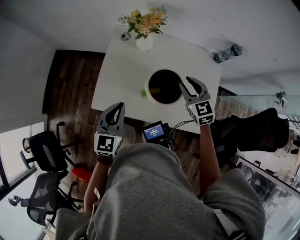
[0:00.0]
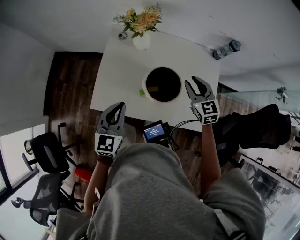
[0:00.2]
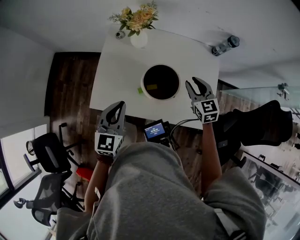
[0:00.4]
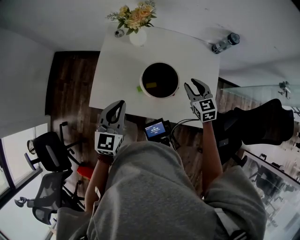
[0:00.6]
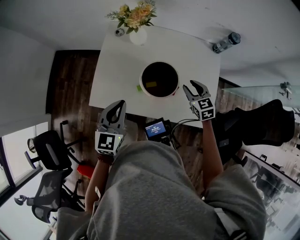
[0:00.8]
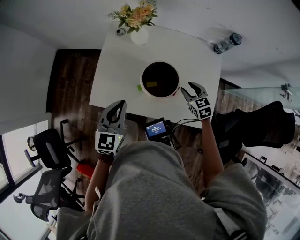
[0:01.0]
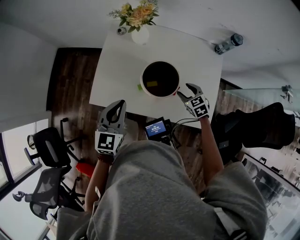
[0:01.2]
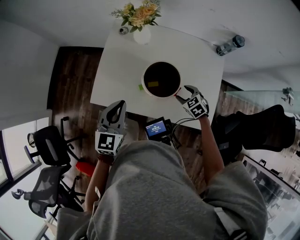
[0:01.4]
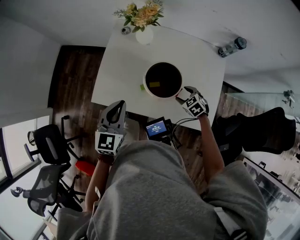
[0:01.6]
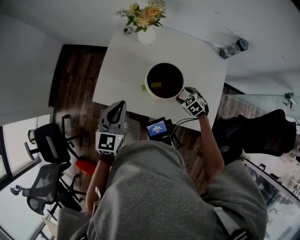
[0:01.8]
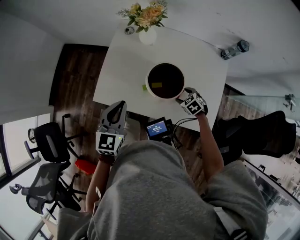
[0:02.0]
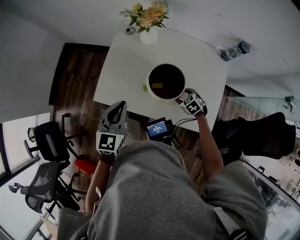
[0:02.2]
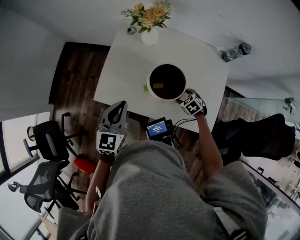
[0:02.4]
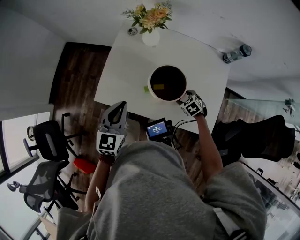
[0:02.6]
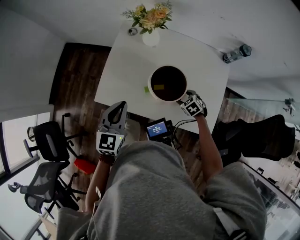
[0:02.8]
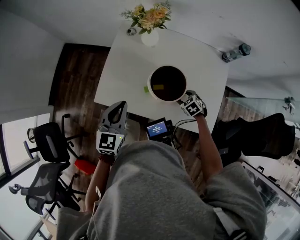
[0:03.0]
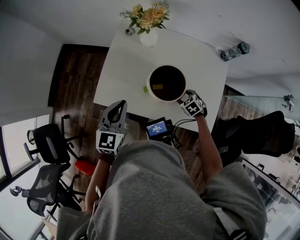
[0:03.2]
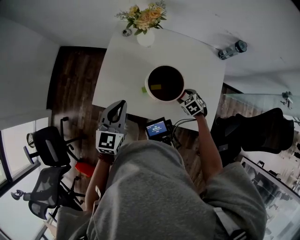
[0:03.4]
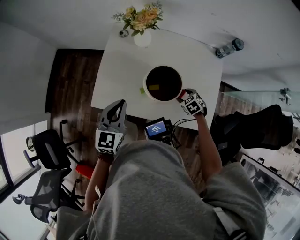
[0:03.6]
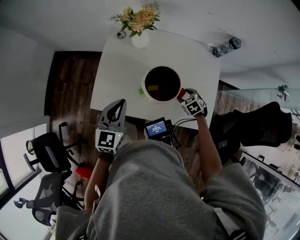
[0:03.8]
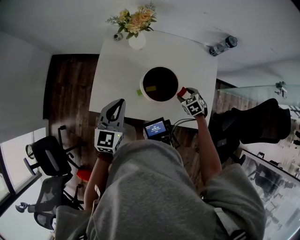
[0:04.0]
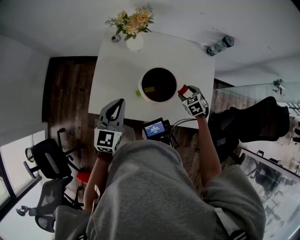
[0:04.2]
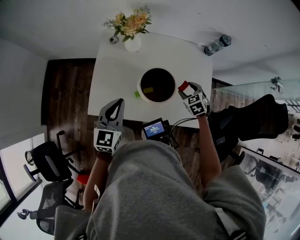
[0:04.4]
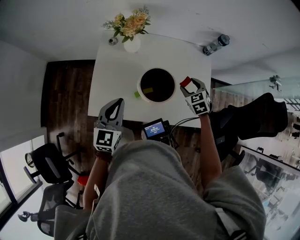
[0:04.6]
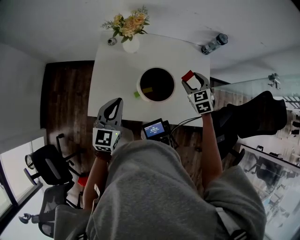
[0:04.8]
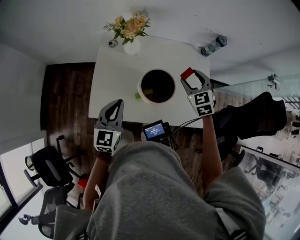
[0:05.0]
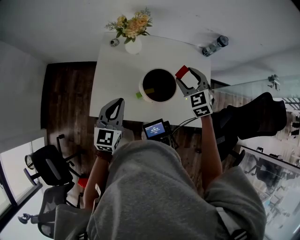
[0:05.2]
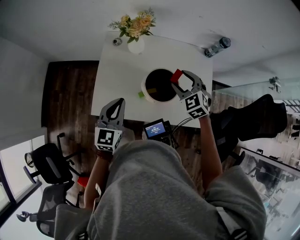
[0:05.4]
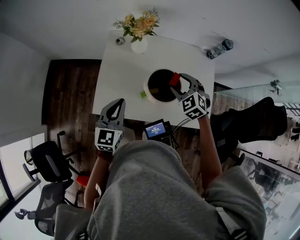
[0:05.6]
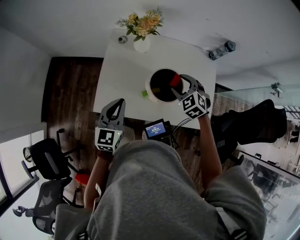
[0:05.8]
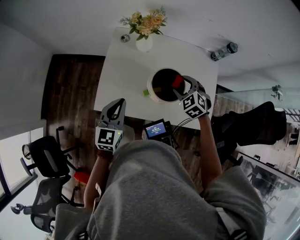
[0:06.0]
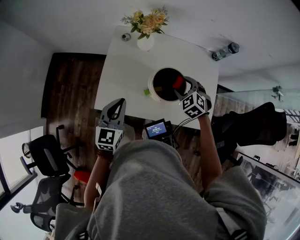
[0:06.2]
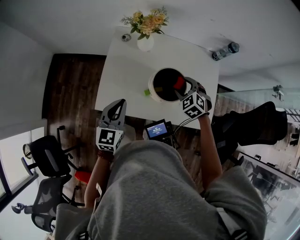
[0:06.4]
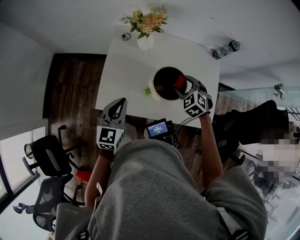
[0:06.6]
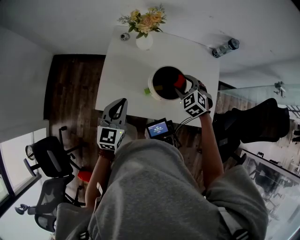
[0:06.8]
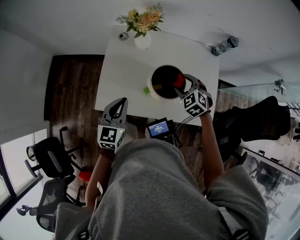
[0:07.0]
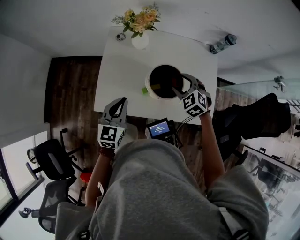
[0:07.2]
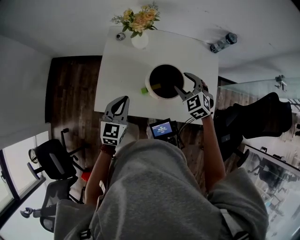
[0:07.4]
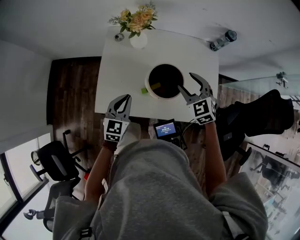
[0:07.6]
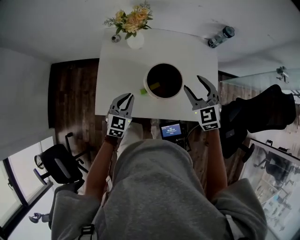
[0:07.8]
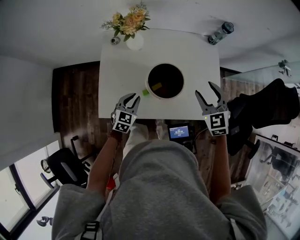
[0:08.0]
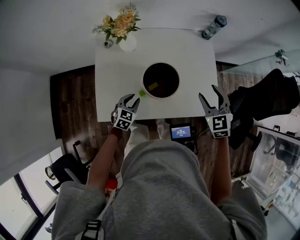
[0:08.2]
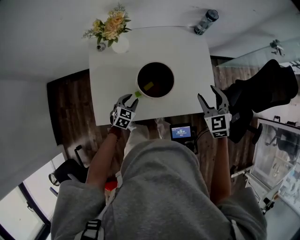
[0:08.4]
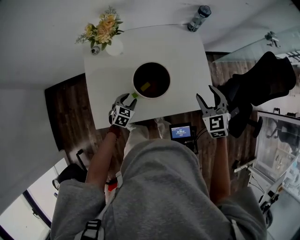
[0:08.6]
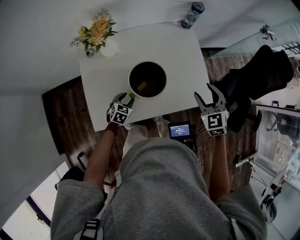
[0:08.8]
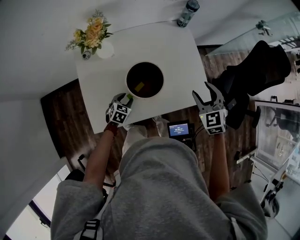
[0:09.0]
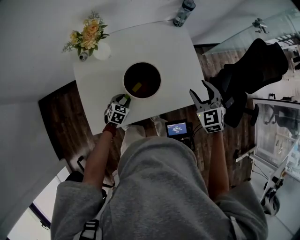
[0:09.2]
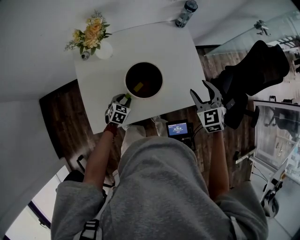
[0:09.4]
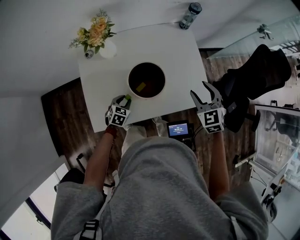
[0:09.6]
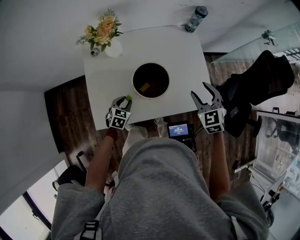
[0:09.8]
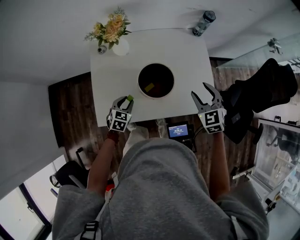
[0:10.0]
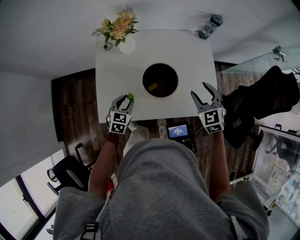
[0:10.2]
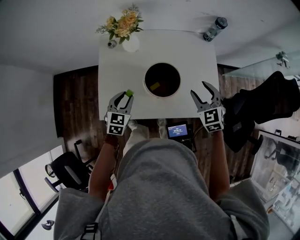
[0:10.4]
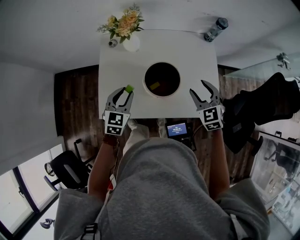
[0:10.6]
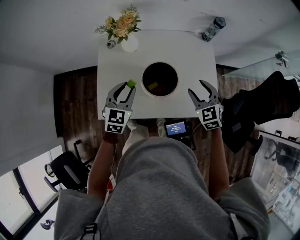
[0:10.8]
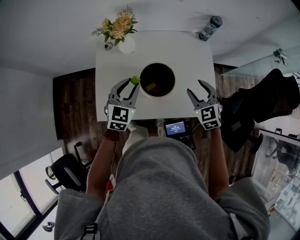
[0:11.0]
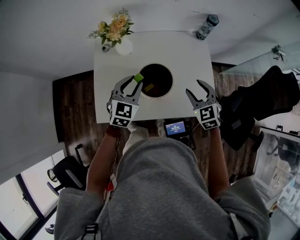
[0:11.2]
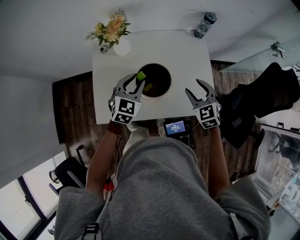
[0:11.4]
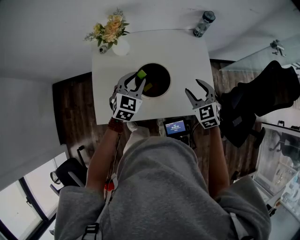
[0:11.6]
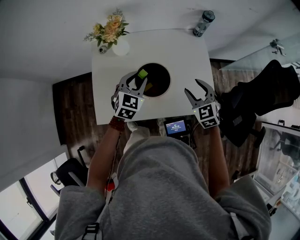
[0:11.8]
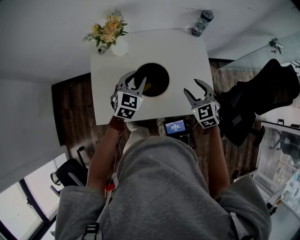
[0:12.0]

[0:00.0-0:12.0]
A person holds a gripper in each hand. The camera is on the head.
0:00.0 to 0:01.6: The right gripper moves downward, approximately 20 cm, points its fingers about 30 degrees further downward, and opens its fingers.
0:01.6 to 0:03.0: The grippers move only a little.
0:03.0 to 0:04.4: The right gripper heads upward, covering roughly 10 cm, and swivels about 20 degrees.
0:04.4 to 0:06.0: The right gripper shifts approximately 15 cm to the left and upward, and turns by roughly 20 degrees.
0:06.0 to 0:07.6: The right gripper moves some 5 cm. The left gripper travels downward by some 5 cm.
0:07.6 to 0:09.0: The left gripper heads downward, covering approximately 20 cm, turns by approximately 40 degrees, and opens its fingers, while the right gripper moves roughly 15 cm, and swivels some 30 degrees.
0:09.0 to 0:10.4: The right gripper heads to the left, covering some 5 cm. The left gripper travels upward by about 15 cm, and turns by approximately 30 degrees.
0:10.4 to 0:12.0: The left gripper shifts roughly 15 cm to the right, forward and upward.

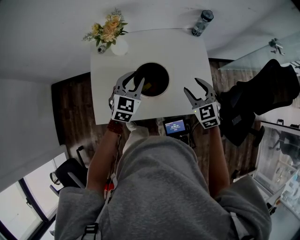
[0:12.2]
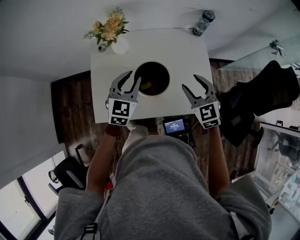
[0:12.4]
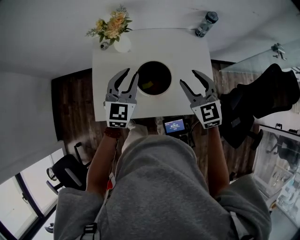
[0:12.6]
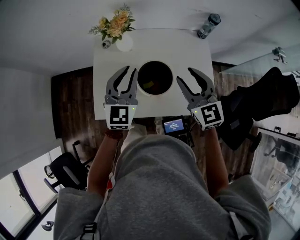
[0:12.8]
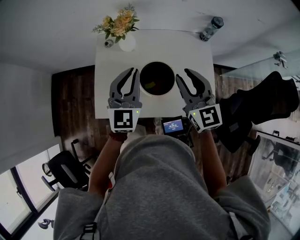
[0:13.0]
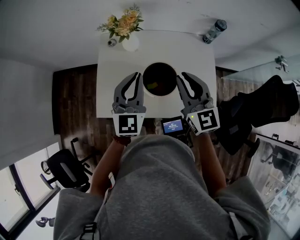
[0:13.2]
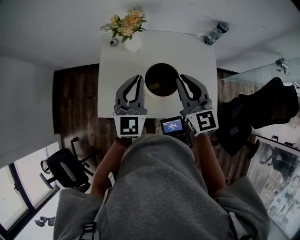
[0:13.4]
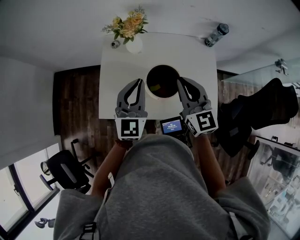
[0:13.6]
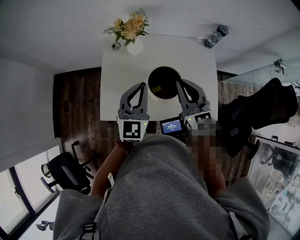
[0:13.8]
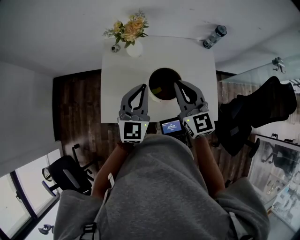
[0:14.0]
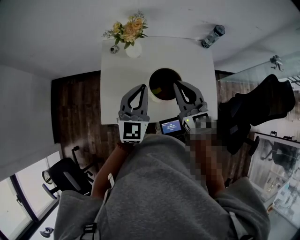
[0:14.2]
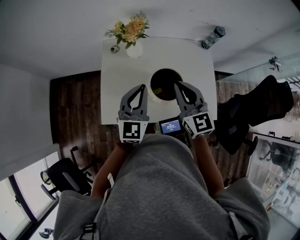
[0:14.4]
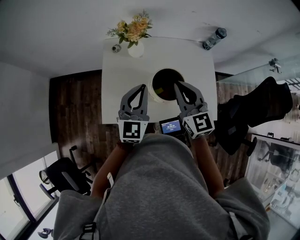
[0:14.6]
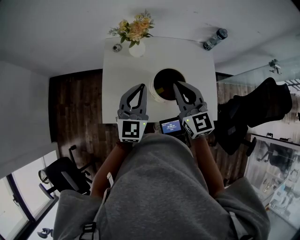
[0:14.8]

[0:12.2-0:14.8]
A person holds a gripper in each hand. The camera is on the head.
0:12.2 to 0:13.4: The two grippers go approximately 15 cm upward and to the left. The right gripper changes its angle by approximately 30 degrees, and closes up. Meanwhile the left gripper rotates about 30 degrees, and closes its fingers.
0:13.4 to 0:14.8: The left gripper shifts by about 5 cm, while the right gripper goes some 5 cm to the left.

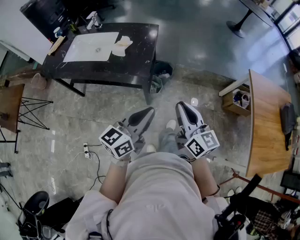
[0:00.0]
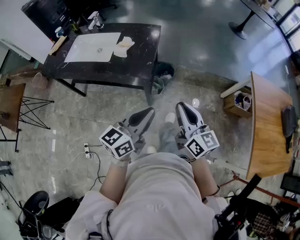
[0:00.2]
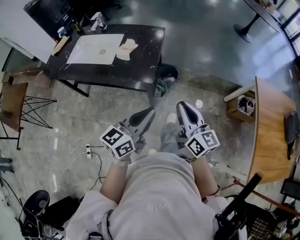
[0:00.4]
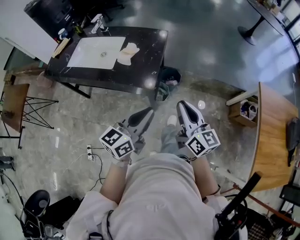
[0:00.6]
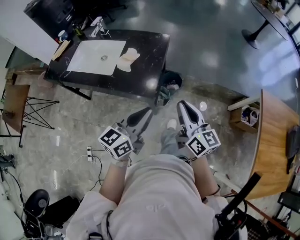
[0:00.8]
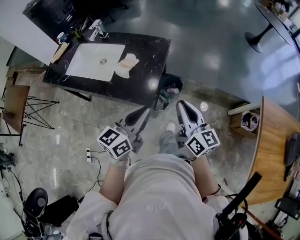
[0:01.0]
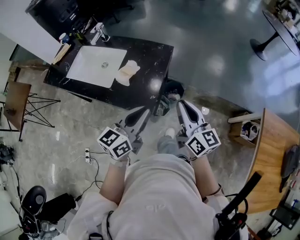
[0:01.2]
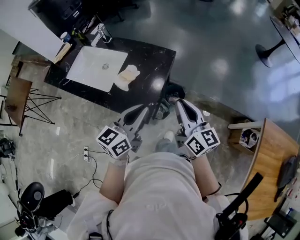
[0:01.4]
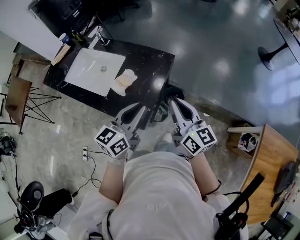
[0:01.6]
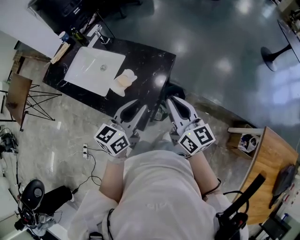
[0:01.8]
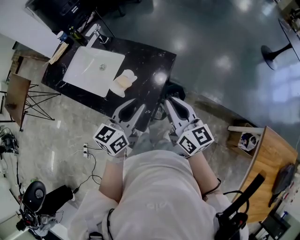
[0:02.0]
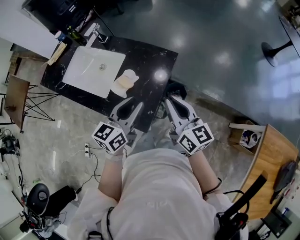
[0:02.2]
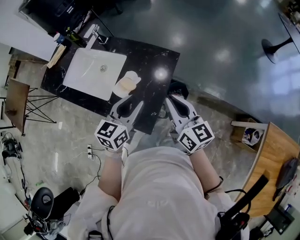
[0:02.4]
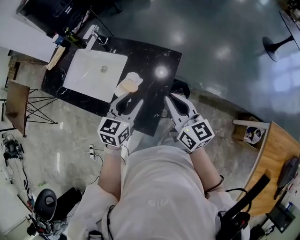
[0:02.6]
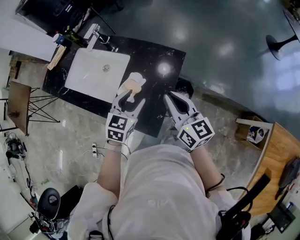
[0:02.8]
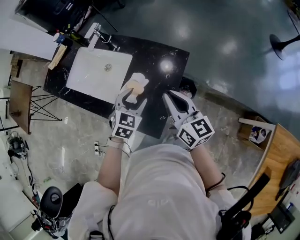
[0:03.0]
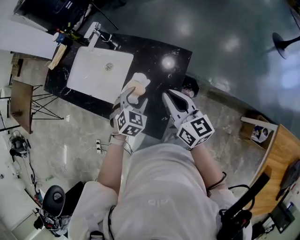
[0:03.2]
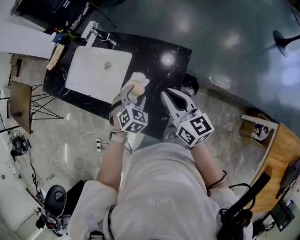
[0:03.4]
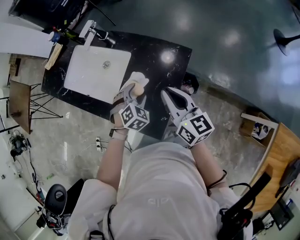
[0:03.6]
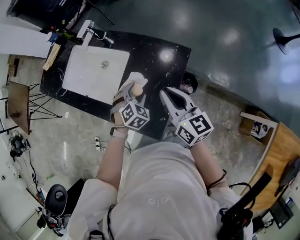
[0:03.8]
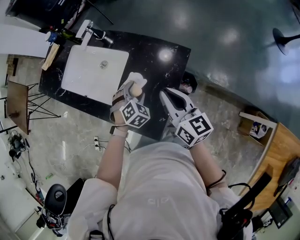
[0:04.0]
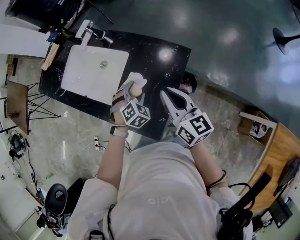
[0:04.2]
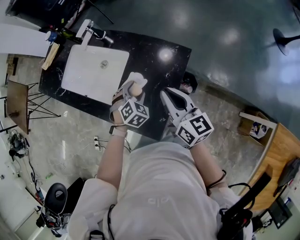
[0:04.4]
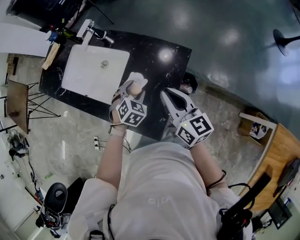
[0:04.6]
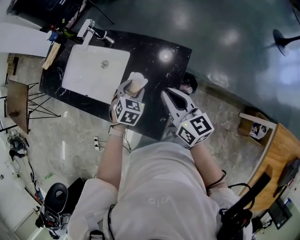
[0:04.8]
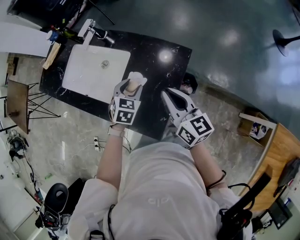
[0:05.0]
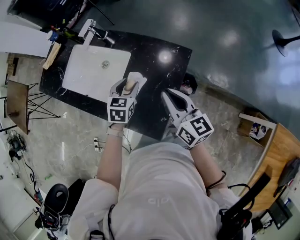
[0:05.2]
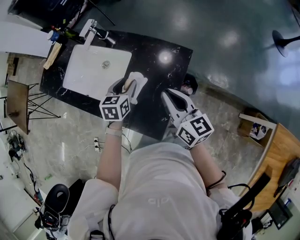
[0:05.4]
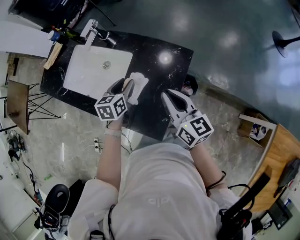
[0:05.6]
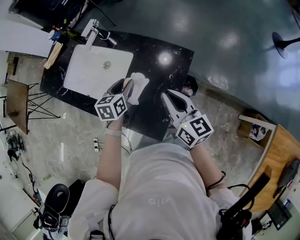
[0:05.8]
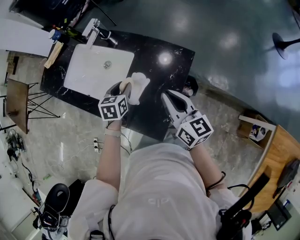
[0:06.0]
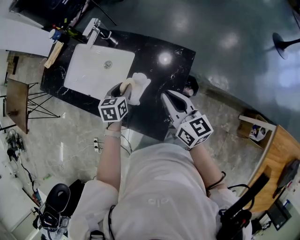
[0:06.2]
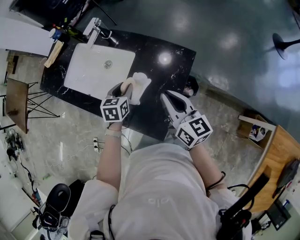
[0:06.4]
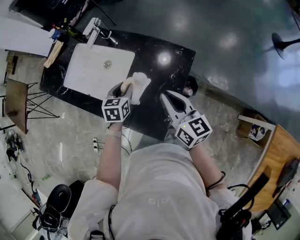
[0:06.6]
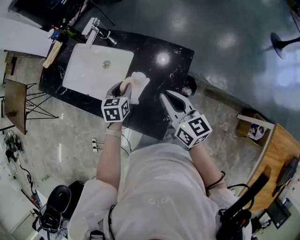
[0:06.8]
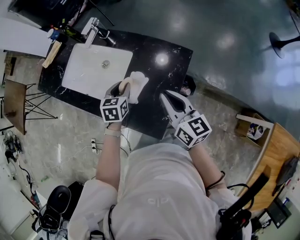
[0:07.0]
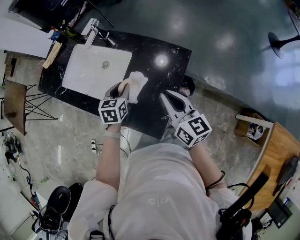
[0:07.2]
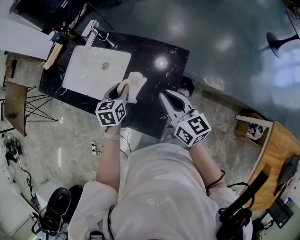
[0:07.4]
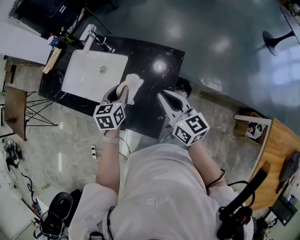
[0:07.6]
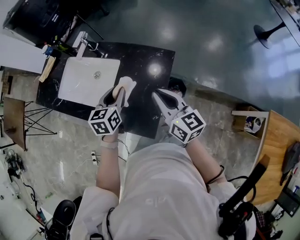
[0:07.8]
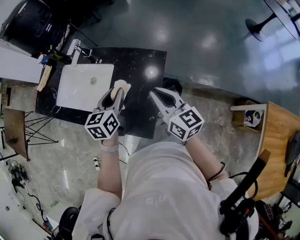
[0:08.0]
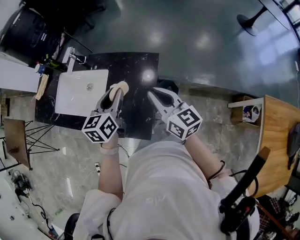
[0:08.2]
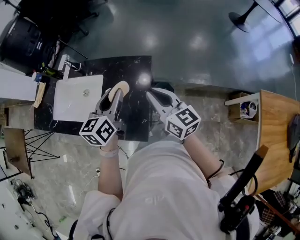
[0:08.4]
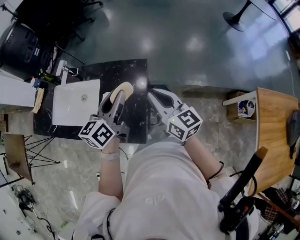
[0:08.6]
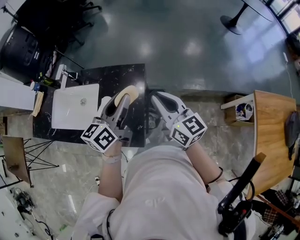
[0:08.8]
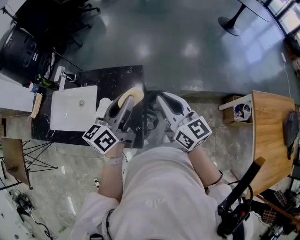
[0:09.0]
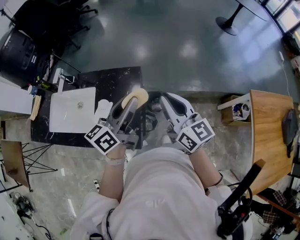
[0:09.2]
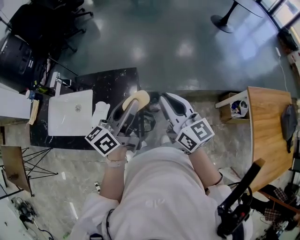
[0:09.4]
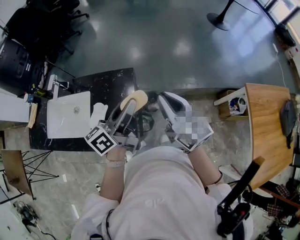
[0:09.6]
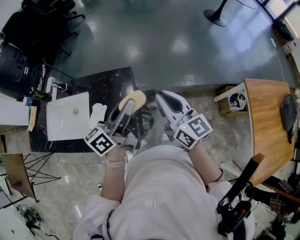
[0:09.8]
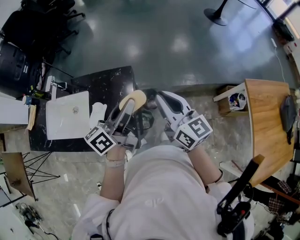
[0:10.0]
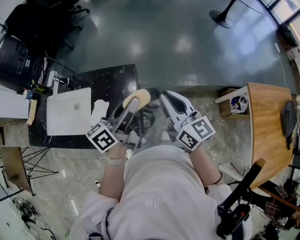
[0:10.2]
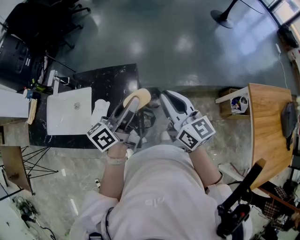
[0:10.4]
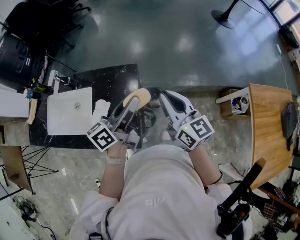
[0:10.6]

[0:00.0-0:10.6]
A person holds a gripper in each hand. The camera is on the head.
0:00.0 to 0:01.6: Both grippers travel together forward, approximately 35 cm. The left gripper rotates about 20 degrees.
0:01.6 to 0:03.0: The left gripper heads downward, forward and to the left, covering roughly 25 cm, tilts its fingers about 40 degrees downward, and opens its fingers, while the right gripper travels forward and to the left by roughly 15 cm.
0:03.0 to 0:04.6: The left gripper goes roughly 10 cm downward and forward.
0:04.6 to 0:06.0: The left gripper shifts approximately 10 cm to the left, rolls counterclockwise, seen from behind, by approximately 40 degrees, and closes its fingers.
0:06.0 to 0:07.6: The left gripper moves upward, some 5 cm.
0:07.6 to 0:09.0: The left gripper goes some 30 cm to the right and upward, and tips its fingers upward by about 30 degrees. Meanwhile the right gripper is displaced to the right and upward by roughly 15 cm, and changes its angle by approximately 20 degrees.
0:09.0 to 0:10.6: There are only small adjustments of the grippers.
